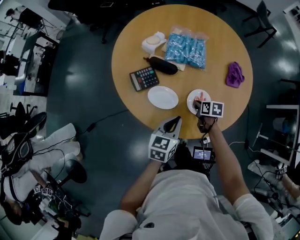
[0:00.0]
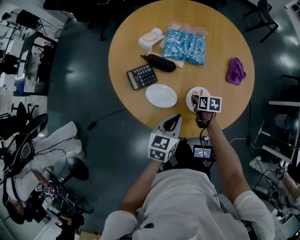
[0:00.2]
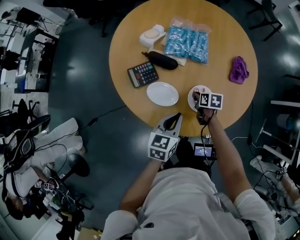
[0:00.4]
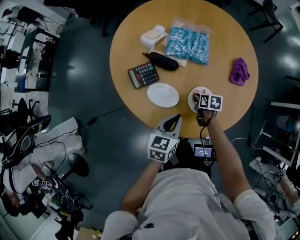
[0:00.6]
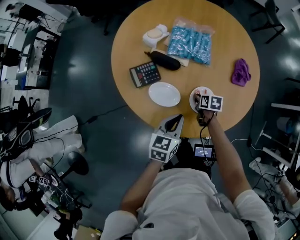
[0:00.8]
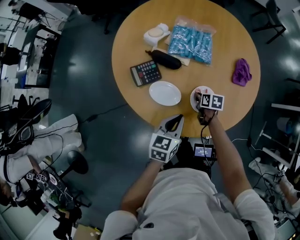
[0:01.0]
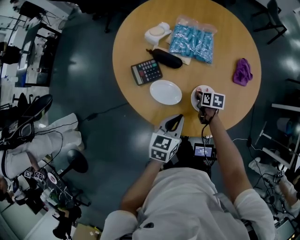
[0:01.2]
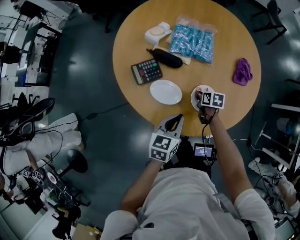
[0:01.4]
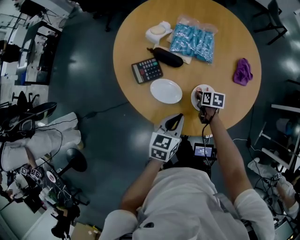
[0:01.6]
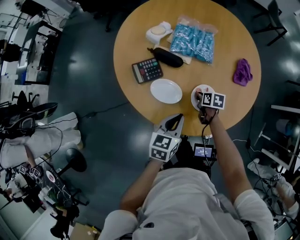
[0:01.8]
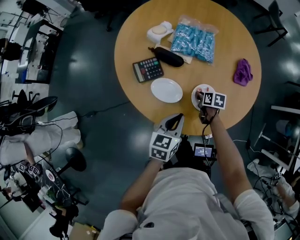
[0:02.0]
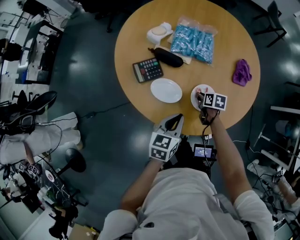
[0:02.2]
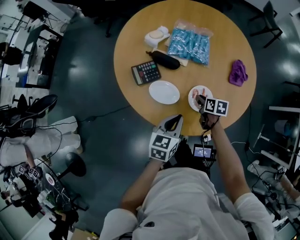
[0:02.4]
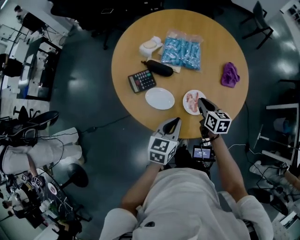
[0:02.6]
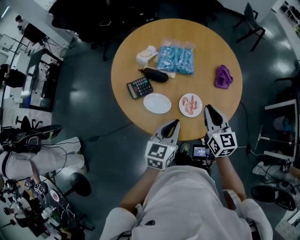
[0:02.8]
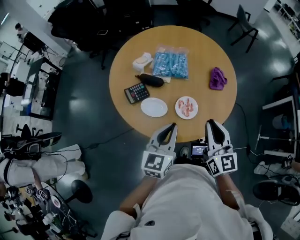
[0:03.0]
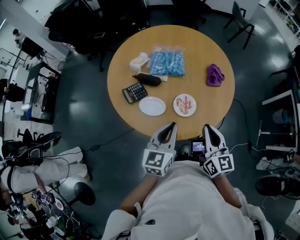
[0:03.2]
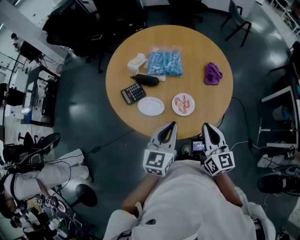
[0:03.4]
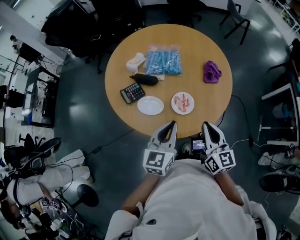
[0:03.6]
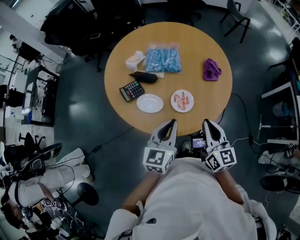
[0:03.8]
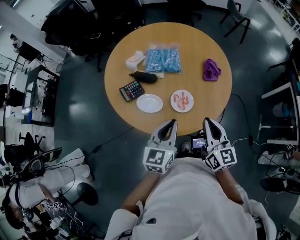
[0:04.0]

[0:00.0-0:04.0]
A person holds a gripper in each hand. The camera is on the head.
0:00.0 to 0:01.4: The grippers make only small movements.
0:01.4 to 0:02.6: The right gripper shifts approximately 15 cm upward, and swivels approximately 30 degrees.
0:02.6 to 0:04.0: The left gripper travels upward by approximately 10 cm. Meanwhile the right gripper shifts approximately 25 cm upward and backward, and changes its angle by some 30 degrees.

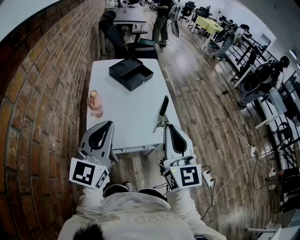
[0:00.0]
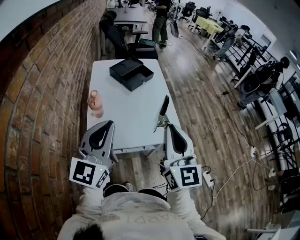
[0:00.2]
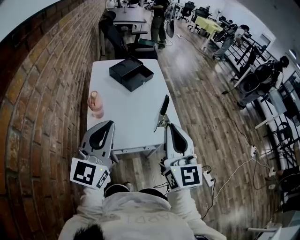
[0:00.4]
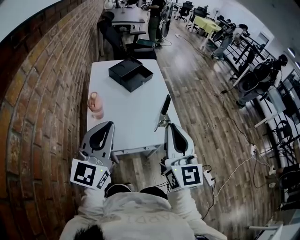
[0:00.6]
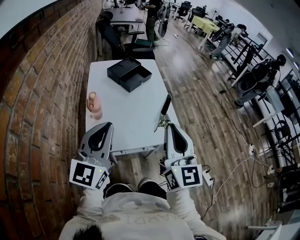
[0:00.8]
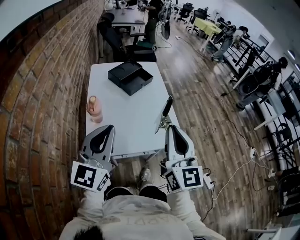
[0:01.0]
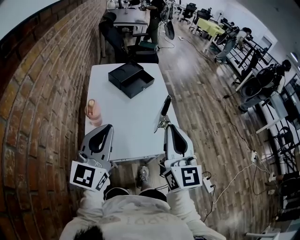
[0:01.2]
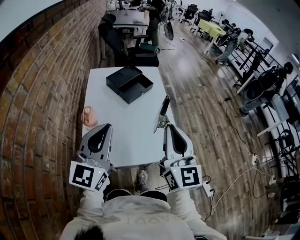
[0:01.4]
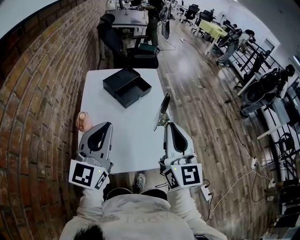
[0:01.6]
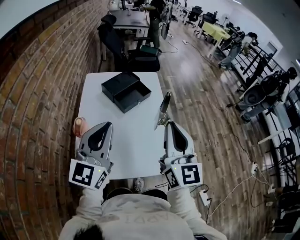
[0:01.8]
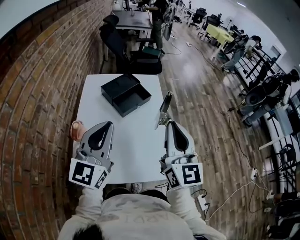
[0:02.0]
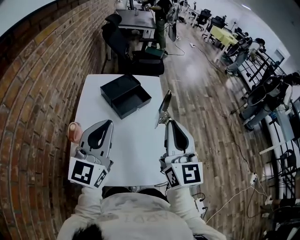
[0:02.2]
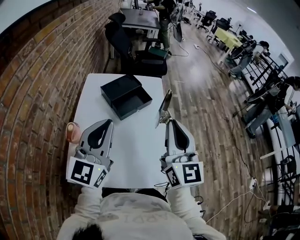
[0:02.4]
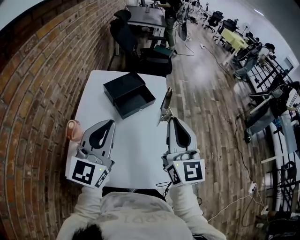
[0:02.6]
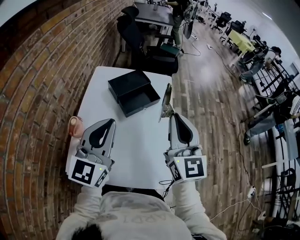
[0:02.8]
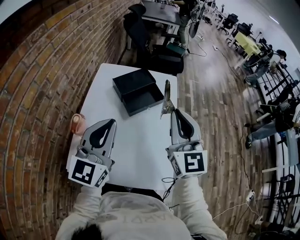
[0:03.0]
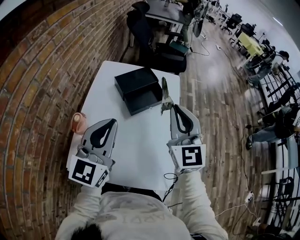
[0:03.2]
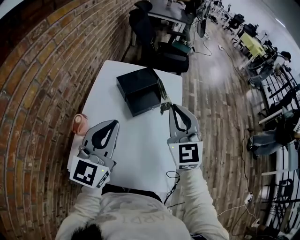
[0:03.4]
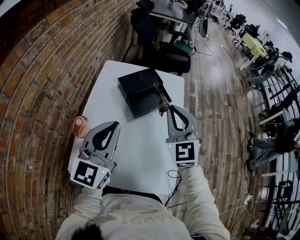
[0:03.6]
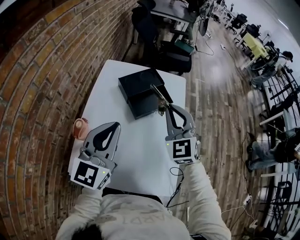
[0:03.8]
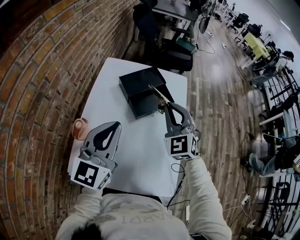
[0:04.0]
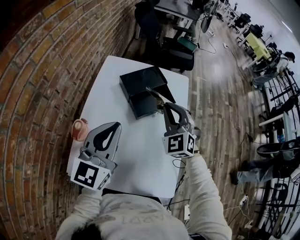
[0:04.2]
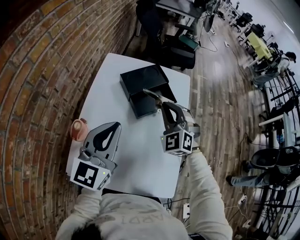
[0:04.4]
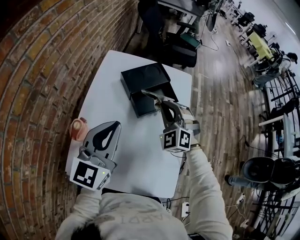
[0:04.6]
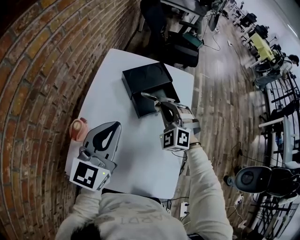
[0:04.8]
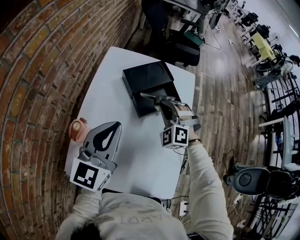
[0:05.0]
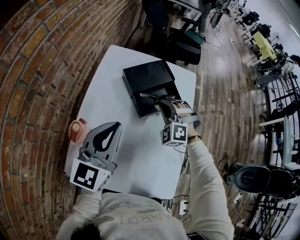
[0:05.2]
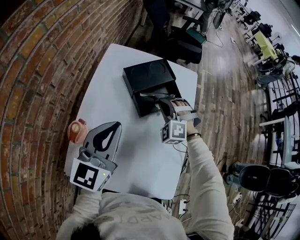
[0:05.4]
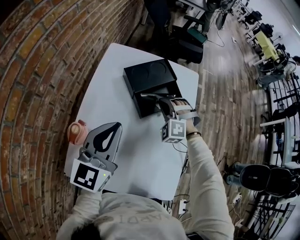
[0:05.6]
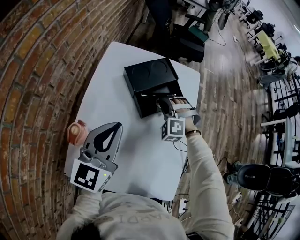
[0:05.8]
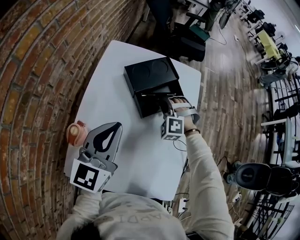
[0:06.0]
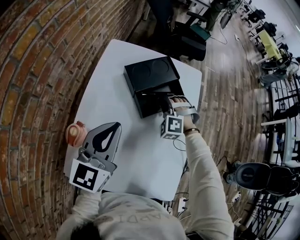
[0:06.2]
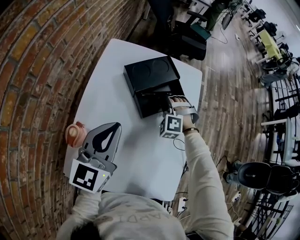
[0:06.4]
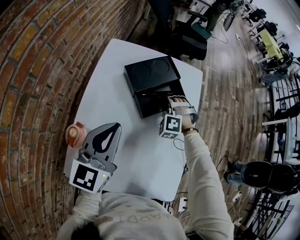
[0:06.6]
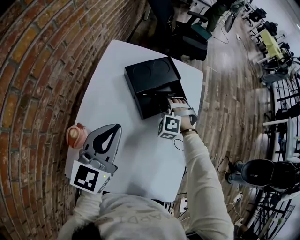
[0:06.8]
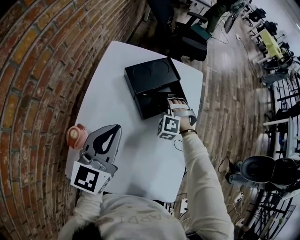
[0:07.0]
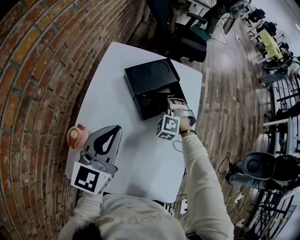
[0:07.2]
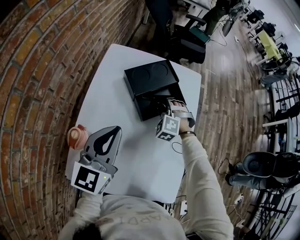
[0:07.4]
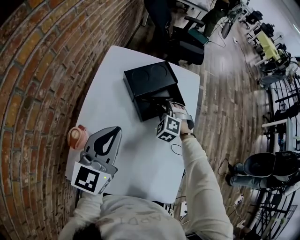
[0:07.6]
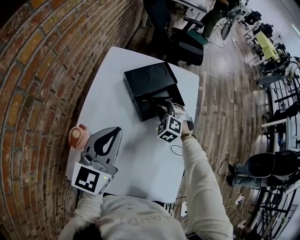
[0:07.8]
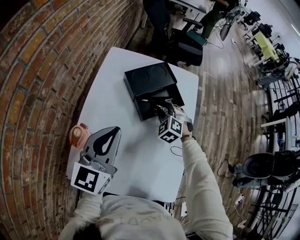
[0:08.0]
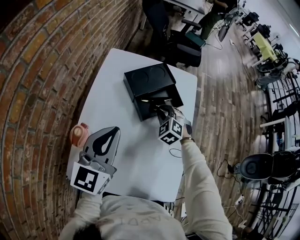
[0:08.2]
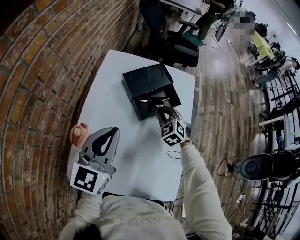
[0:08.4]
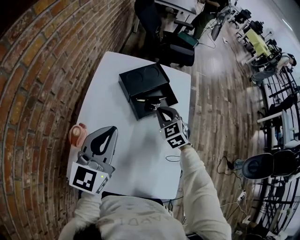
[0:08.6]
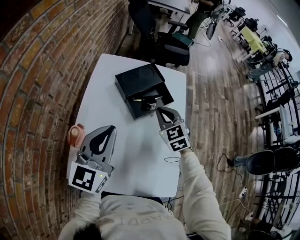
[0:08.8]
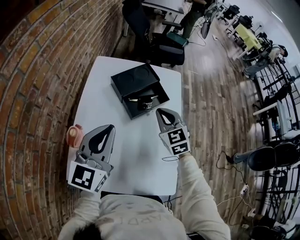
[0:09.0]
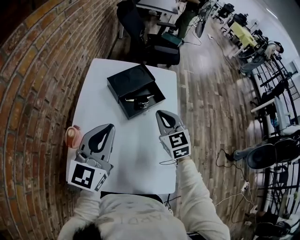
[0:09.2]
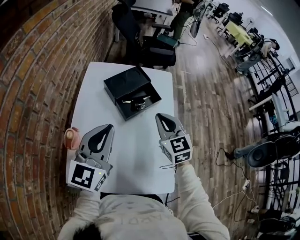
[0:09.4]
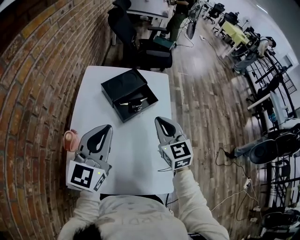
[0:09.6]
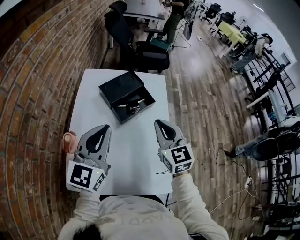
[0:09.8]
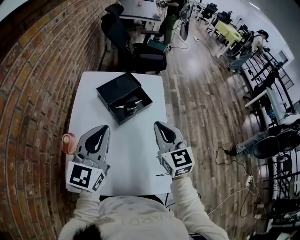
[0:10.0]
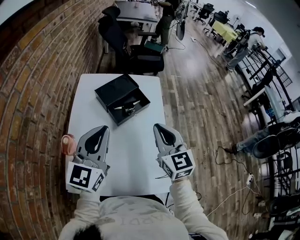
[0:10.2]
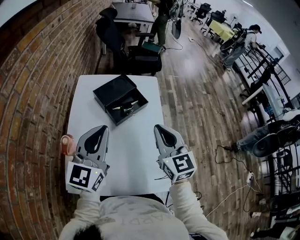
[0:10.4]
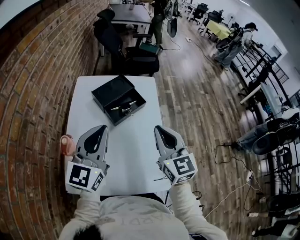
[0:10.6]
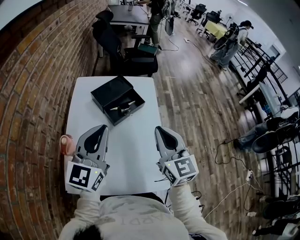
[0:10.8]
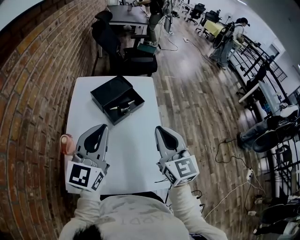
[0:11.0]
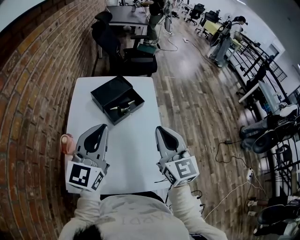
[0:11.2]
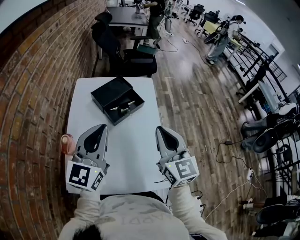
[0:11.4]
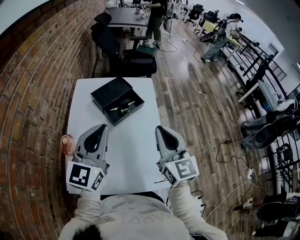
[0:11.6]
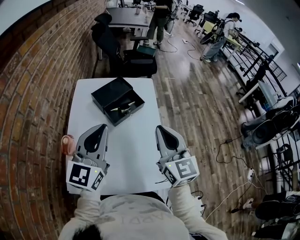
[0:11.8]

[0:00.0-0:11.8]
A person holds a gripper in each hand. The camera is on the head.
0:00.0 to 0:01.4: Both grippers travel together forward, roughly 10 cm.
0:01.4 to 0:03.0: The two grippers go about 25 cm forward. The right gripper turns by approximately 20 degrees.
0:03.0 to 0:04.4: The left gripper goes some 10 cm forward and downward; the right gripper moves downward, forward and to the left, approximately 25 cm, and swivels some 50 degrees.
0:04.4 to 0:06.0: The right gripper travels downward and forward by roughly 20 cm, and swivels approximately 40 degrees; the left gripper moves downward, some 5 cm.
0:06.0 to 0:07.4: There are only small adjustments of the grippers.
0:07.4 to 0:08.8: The right gripper heads upward and backward, covering some 15 cm, and rotates around the line of its fingers by approximately 50 degrees, clockwise from behind, while the left gripper shifts by roughly 5 cm.
0:08.8 to 0:10.4: The right gripper goes some 25 cm backward, upward and to the right, and turns by approximately 30 degrees; the left gripper shifts about 10 cm to the right and upward.
0:10.4 to 0:11.8: The right gripper moves approximately 5 cm.

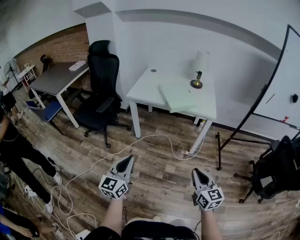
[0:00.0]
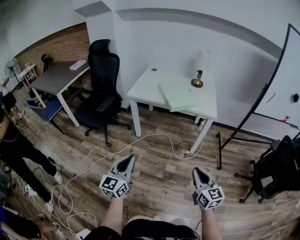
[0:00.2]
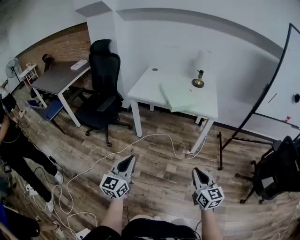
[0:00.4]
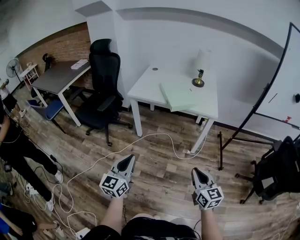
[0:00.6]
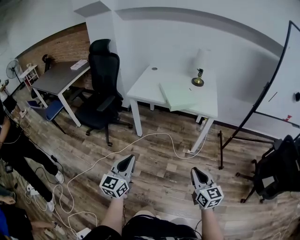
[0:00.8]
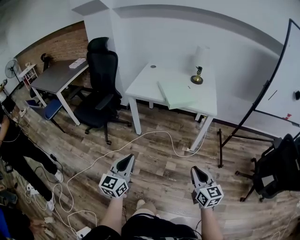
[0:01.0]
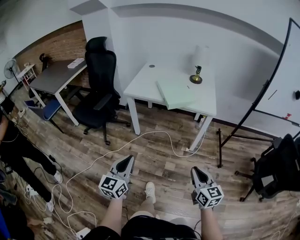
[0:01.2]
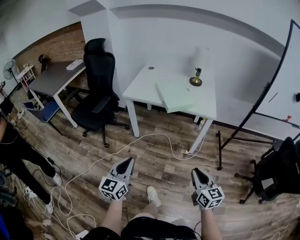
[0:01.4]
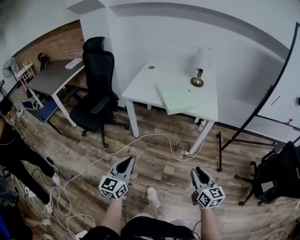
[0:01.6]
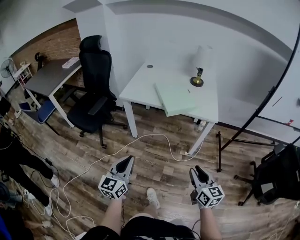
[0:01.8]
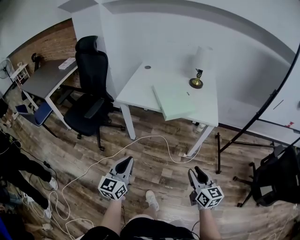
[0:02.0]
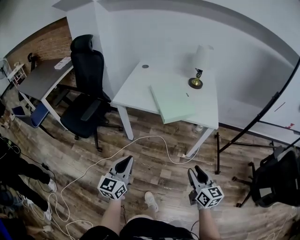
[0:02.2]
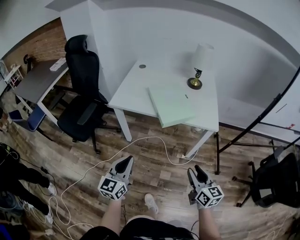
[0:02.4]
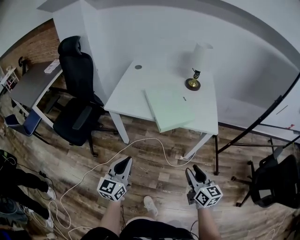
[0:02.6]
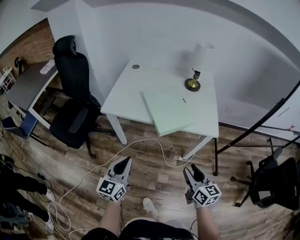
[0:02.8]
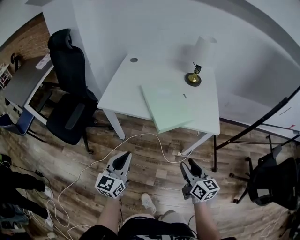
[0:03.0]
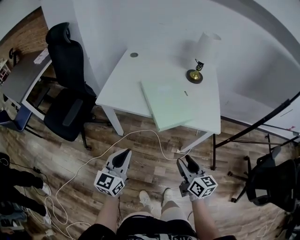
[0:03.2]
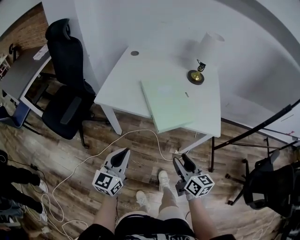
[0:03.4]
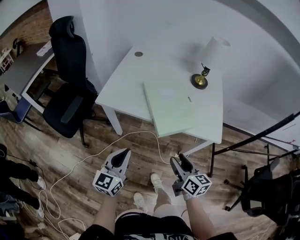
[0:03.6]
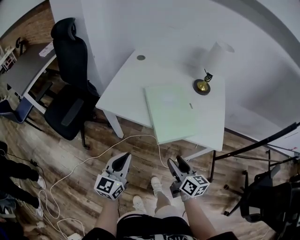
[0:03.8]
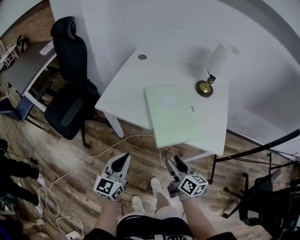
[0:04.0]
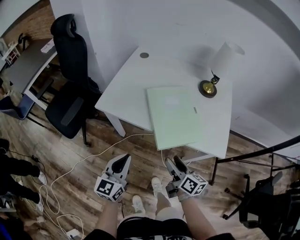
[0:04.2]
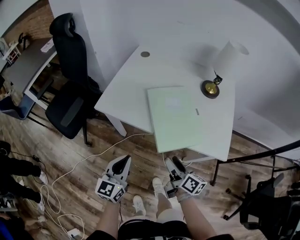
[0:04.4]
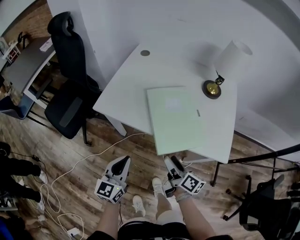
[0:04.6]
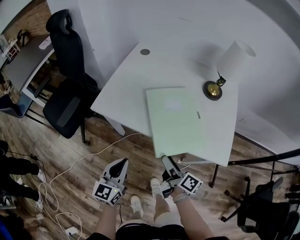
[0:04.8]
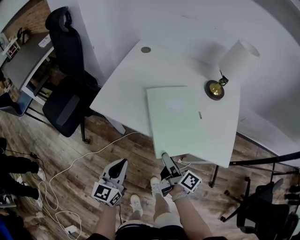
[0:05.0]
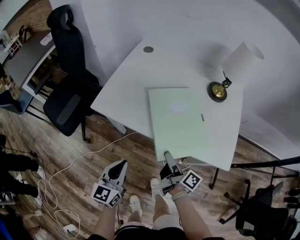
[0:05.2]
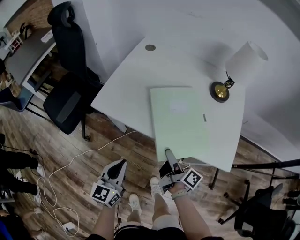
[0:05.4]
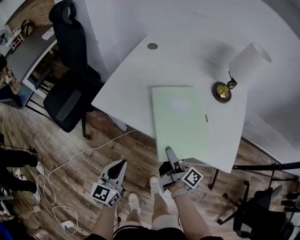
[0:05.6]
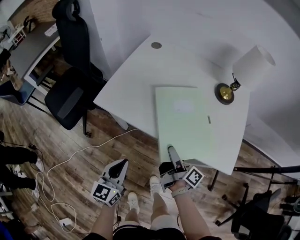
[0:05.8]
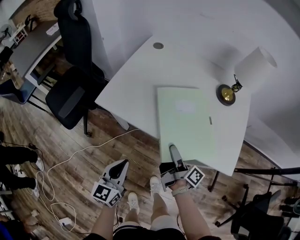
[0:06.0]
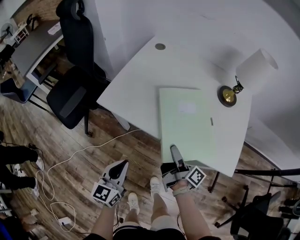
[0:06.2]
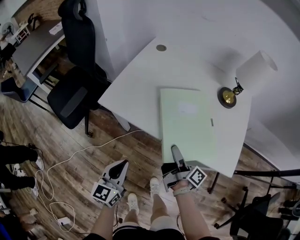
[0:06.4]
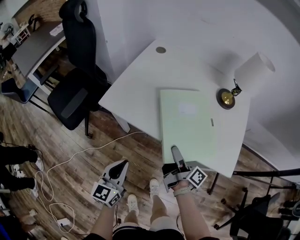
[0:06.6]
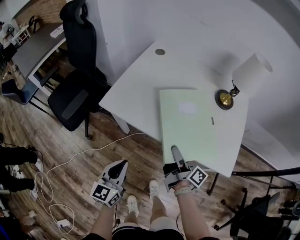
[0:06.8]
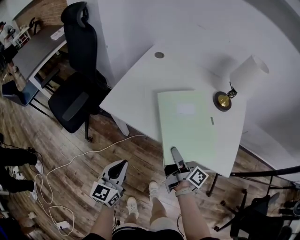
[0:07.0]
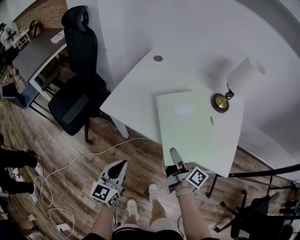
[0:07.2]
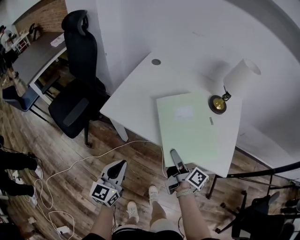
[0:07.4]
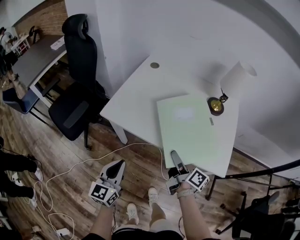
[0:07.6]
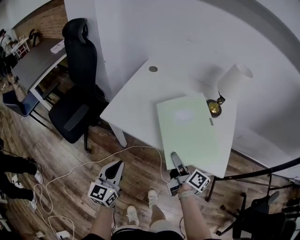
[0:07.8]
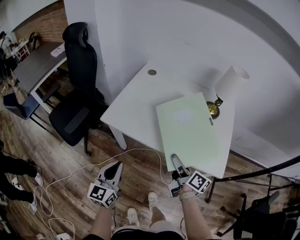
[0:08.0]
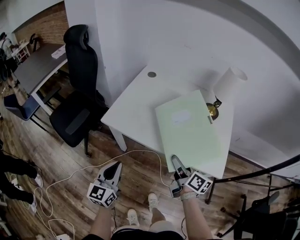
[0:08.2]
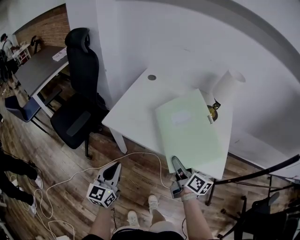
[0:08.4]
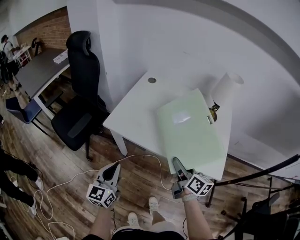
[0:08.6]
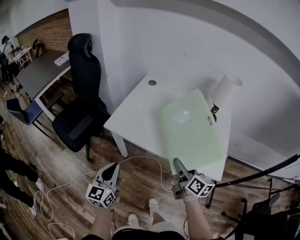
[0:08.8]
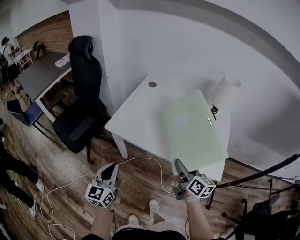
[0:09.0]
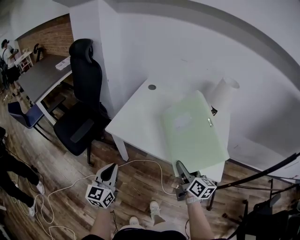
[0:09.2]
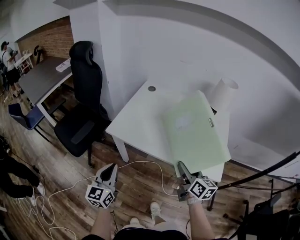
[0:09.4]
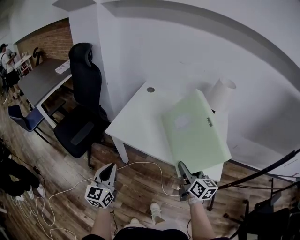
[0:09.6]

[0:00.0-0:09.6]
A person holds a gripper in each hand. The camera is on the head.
0:00.0 to 0:01.6: Both grippers move forward, roughly 5 cm.
0:01.6 to 0:03.2: Both grippers move forward, roughly 30 cm.
0:03.2 to 0:04.8: The left gripper travels forward and downward by about 10 cm; the right gripper heads forward, covering roughly 20 cm, turns by some 40 degrees, and opens.
0:04.8 to 0:06.4: The right gripper moves forward, approximately 5 cm.
0:06.4 to 0:08.0: The grippers both shift upward by roughly 10 cm. The right gripper turns by roughly 30 degrees.
0:08.0 to 0:09.6: The right gripper shifts by approximately 10 cm, and changes its angle by about 30 degrees; the left gripper goes some 5 cm upward.
